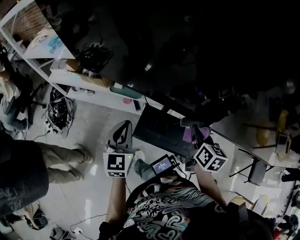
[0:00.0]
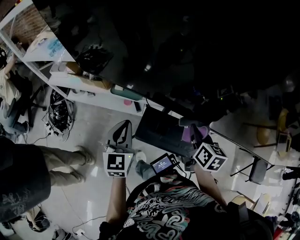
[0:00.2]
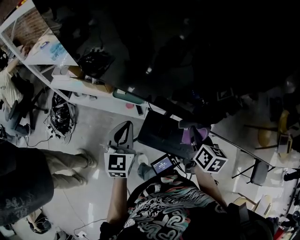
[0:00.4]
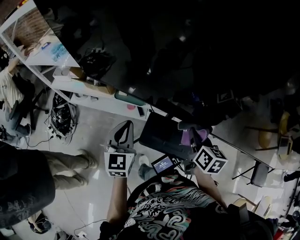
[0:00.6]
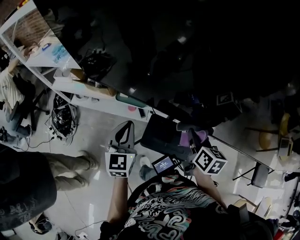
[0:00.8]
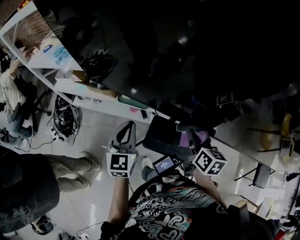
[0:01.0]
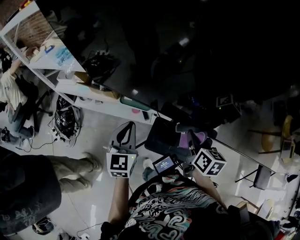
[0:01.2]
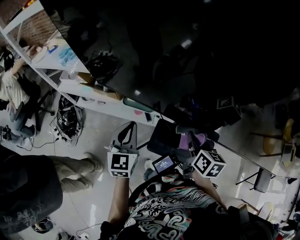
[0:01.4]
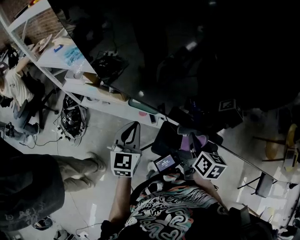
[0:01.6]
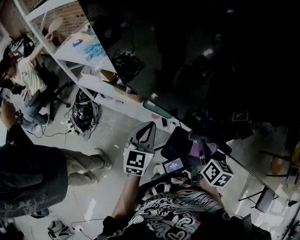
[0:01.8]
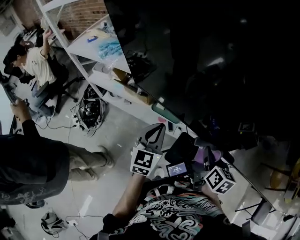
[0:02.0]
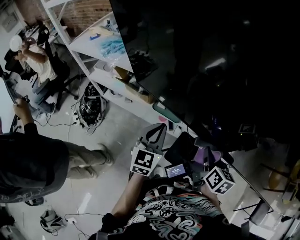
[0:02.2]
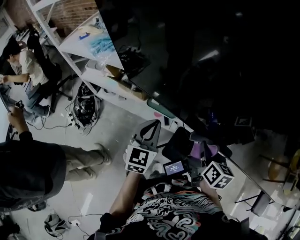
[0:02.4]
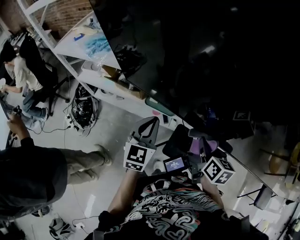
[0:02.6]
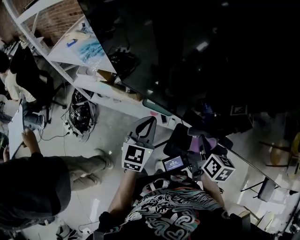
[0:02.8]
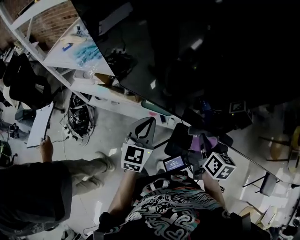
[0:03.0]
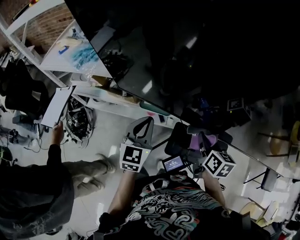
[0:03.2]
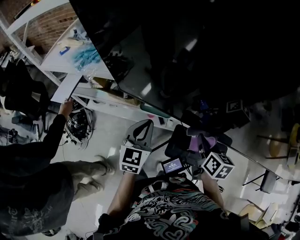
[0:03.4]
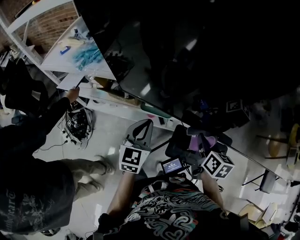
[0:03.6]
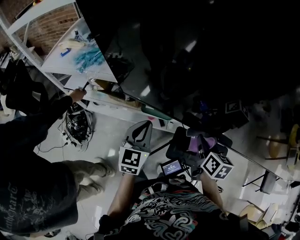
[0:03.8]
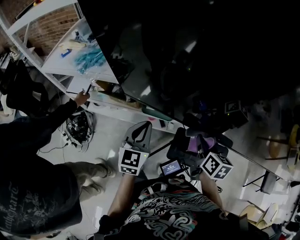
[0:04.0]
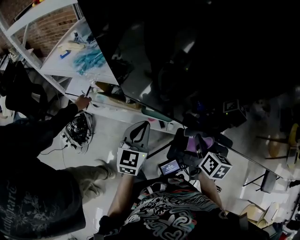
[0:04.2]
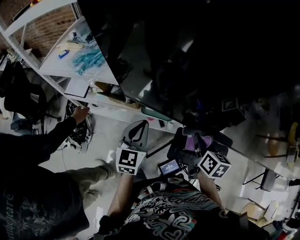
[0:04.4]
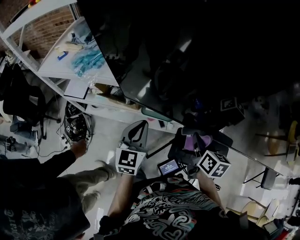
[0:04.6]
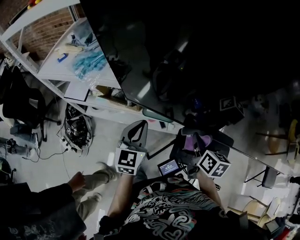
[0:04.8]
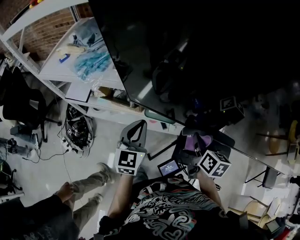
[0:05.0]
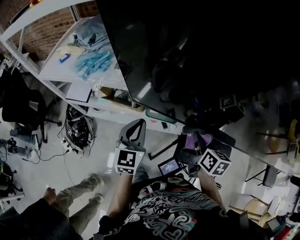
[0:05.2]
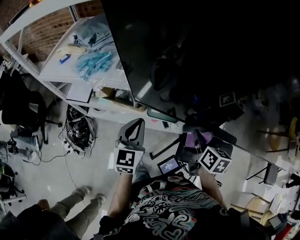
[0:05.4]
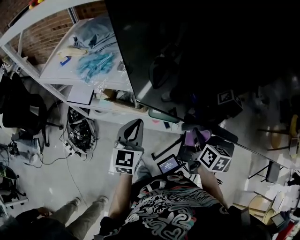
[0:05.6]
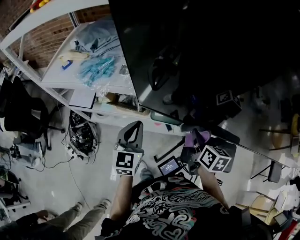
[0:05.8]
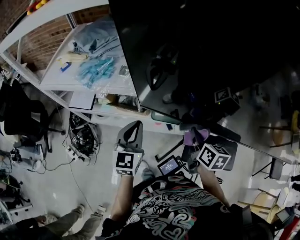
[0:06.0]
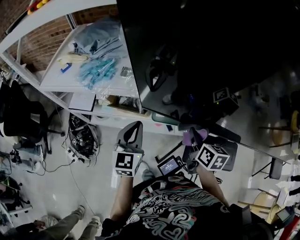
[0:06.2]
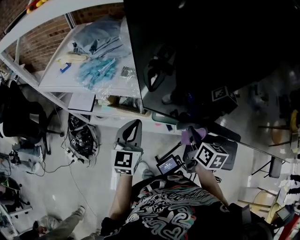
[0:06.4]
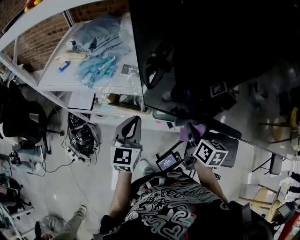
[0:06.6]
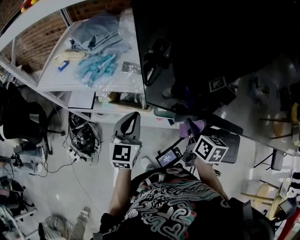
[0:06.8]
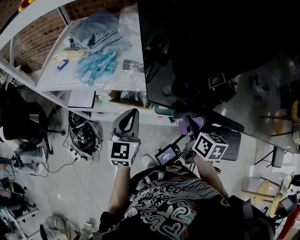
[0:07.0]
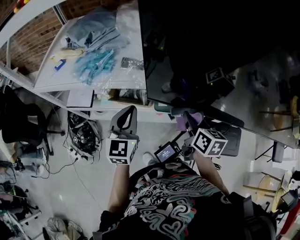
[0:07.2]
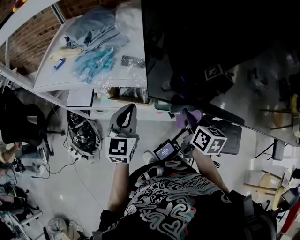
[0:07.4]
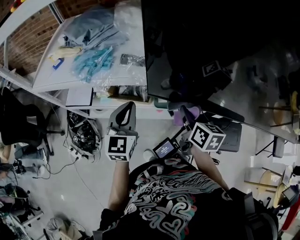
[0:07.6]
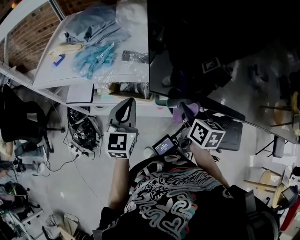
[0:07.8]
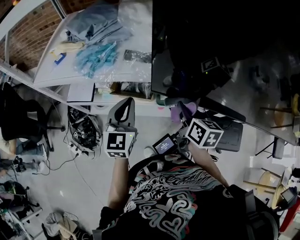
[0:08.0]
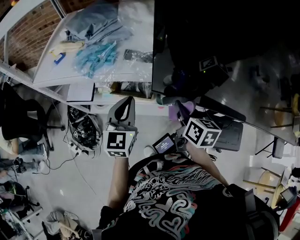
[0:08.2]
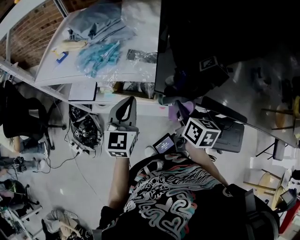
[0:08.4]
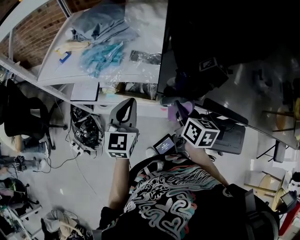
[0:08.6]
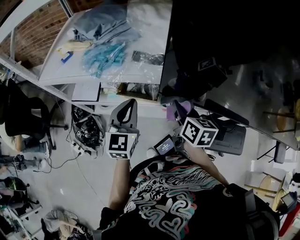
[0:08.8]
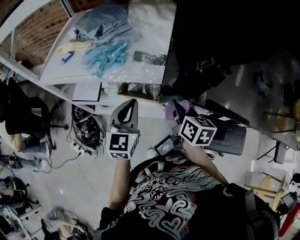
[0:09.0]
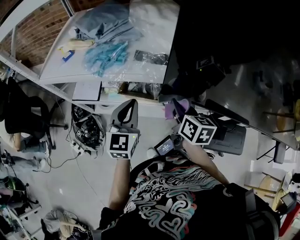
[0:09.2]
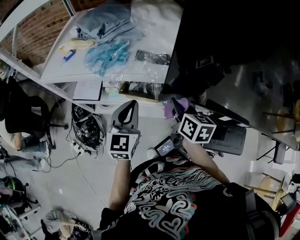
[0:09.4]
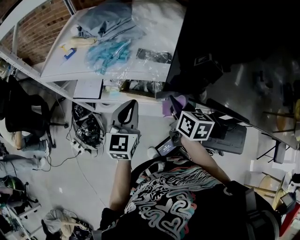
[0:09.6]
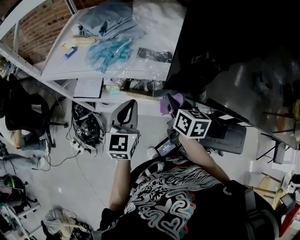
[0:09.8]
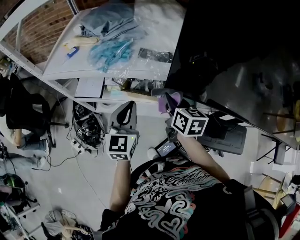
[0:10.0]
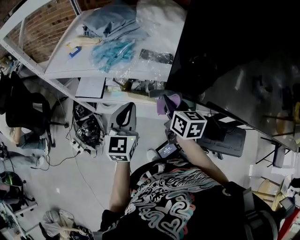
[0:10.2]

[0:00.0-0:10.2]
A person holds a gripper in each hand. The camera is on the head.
0:00.0 to 0:01.4: The right gripper heads to the left, covering roughly 10 cm. The left gripper is displaced to the left and forward by some 10 cm.
0:01.4 to 0:03.0: The left gripper changes place by about 5 cm. Meanwhile the right gripper moves to the left, roughly 5 cm.
0:03.0 to 0:04.4: Both grippers move to the left, about 5 cm.
0:04.4 to 0:05.8: Both grippers move to the left, roughly 10 cm.
0:05.8 to 0:07.2: The two grippers go about 10 cm to the left.
0:07.2 to 0:08.8: The right gripper travels to the left by some 10 cm.
0:08.8 to 0:10.2: The right gripper shifts approximately 5 cm to the left.

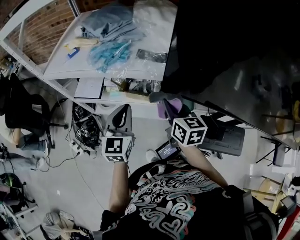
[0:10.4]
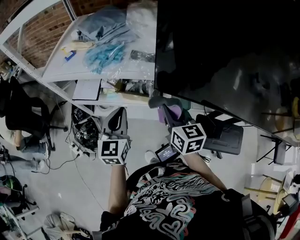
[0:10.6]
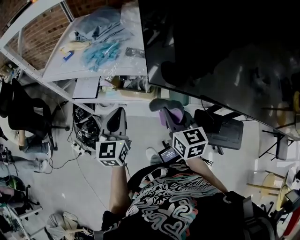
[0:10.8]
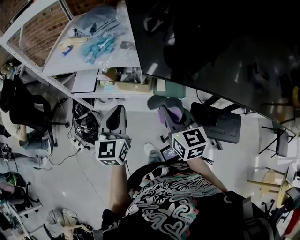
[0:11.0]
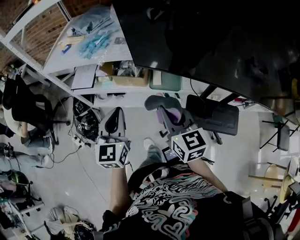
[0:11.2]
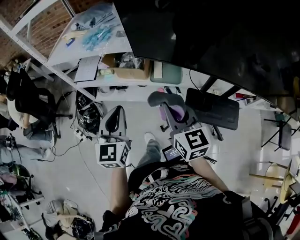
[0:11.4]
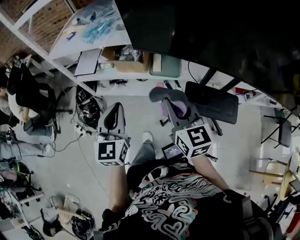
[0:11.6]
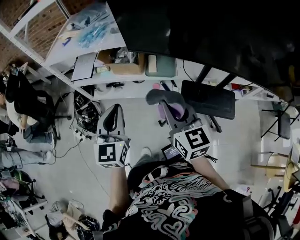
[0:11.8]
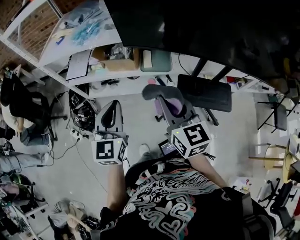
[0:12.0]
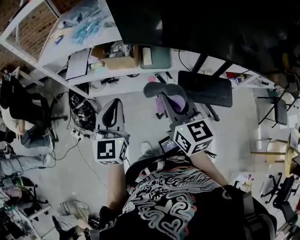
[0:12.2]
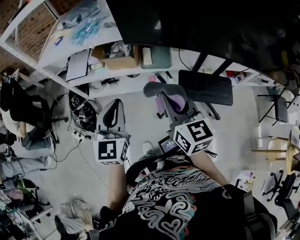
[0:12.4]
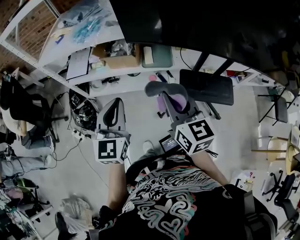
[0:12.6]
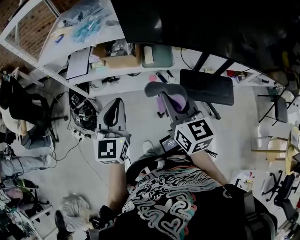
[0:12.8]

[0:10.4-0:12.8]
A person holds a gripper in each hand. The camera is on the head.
0:10.4 to 0:11.6: The grippers both shift backward by about 30 cm.
0:11.6 to 0:12.8: The right gripper shifts by roughly 5 cm.

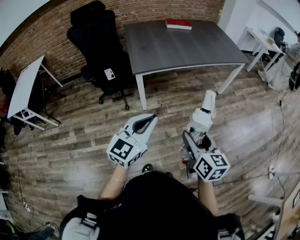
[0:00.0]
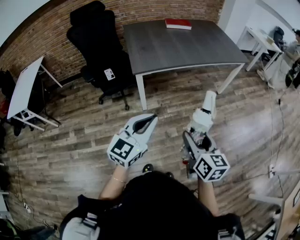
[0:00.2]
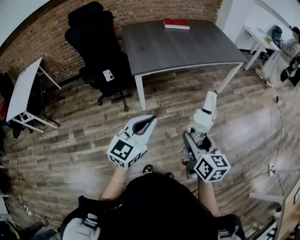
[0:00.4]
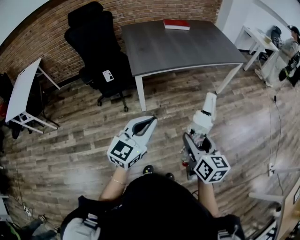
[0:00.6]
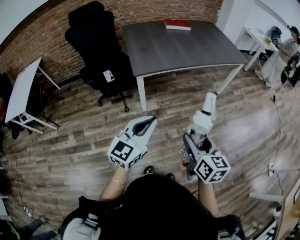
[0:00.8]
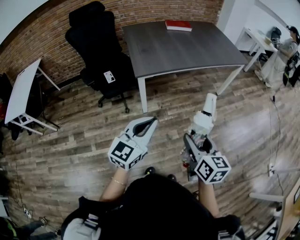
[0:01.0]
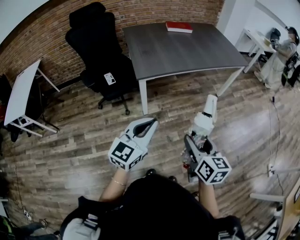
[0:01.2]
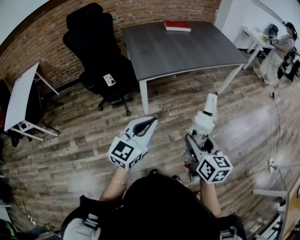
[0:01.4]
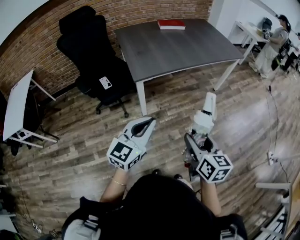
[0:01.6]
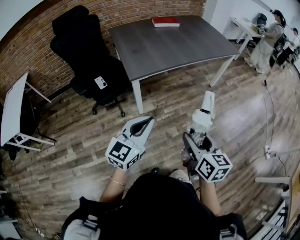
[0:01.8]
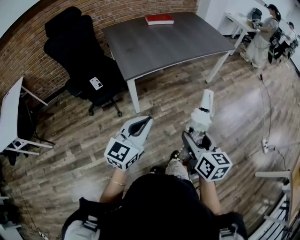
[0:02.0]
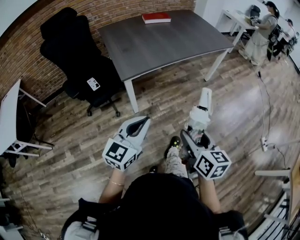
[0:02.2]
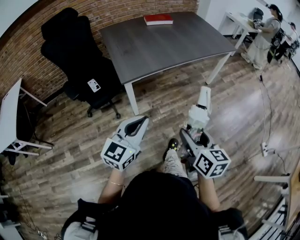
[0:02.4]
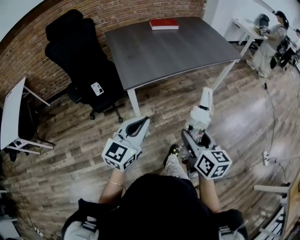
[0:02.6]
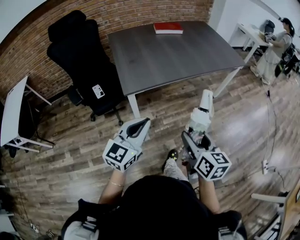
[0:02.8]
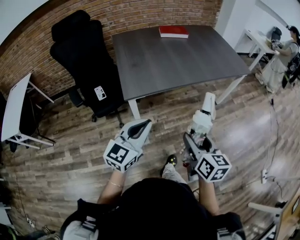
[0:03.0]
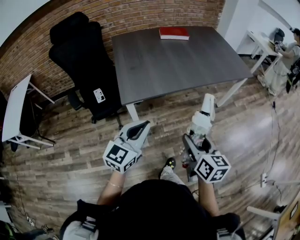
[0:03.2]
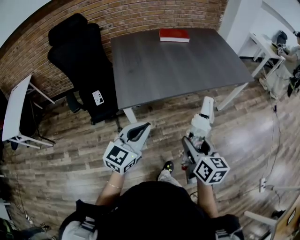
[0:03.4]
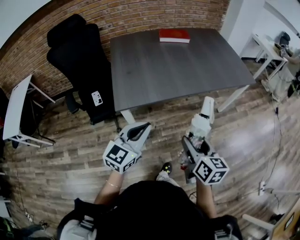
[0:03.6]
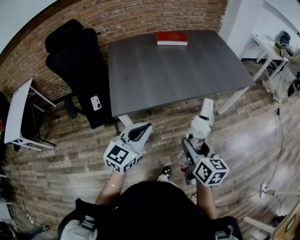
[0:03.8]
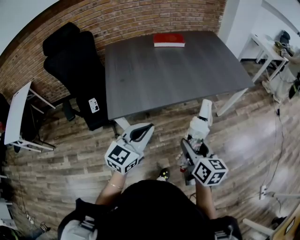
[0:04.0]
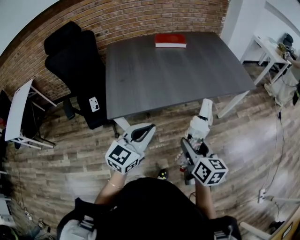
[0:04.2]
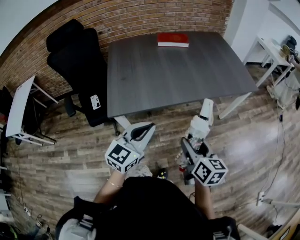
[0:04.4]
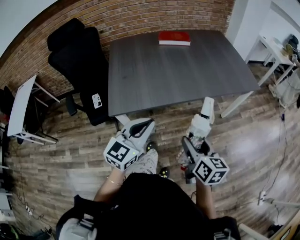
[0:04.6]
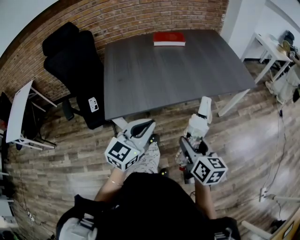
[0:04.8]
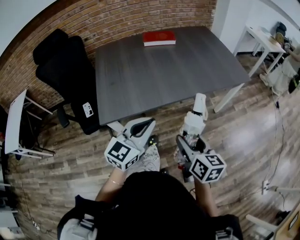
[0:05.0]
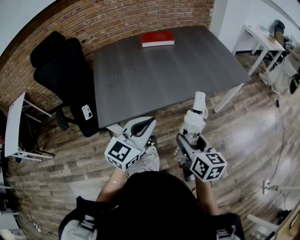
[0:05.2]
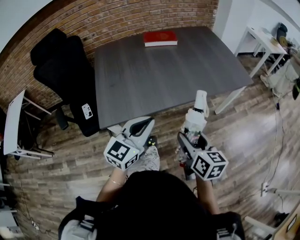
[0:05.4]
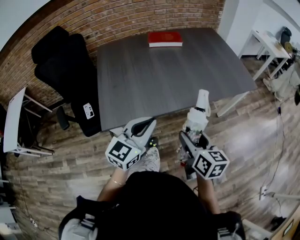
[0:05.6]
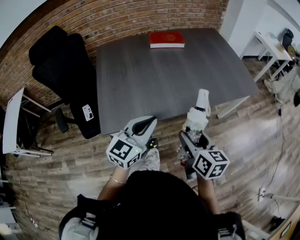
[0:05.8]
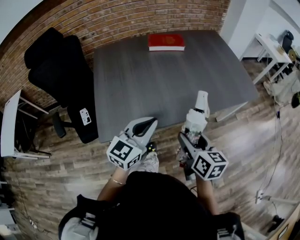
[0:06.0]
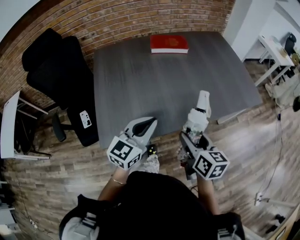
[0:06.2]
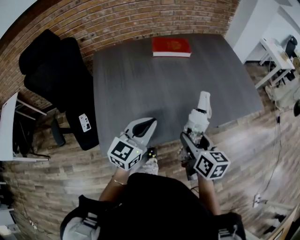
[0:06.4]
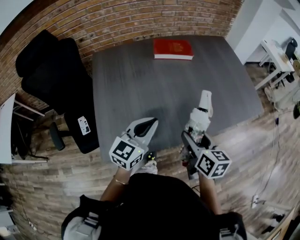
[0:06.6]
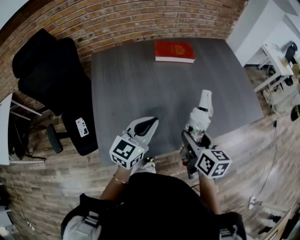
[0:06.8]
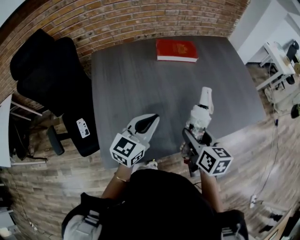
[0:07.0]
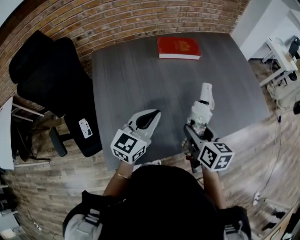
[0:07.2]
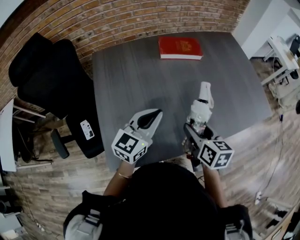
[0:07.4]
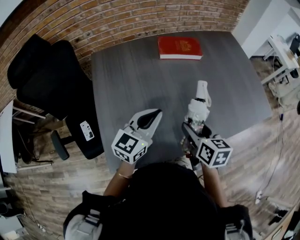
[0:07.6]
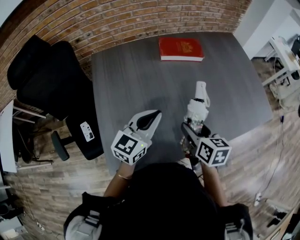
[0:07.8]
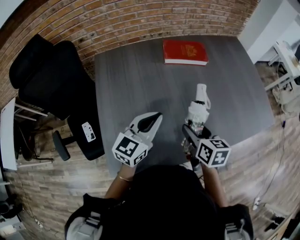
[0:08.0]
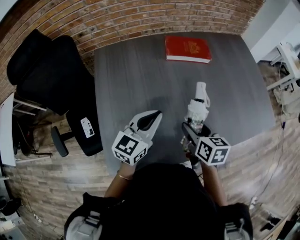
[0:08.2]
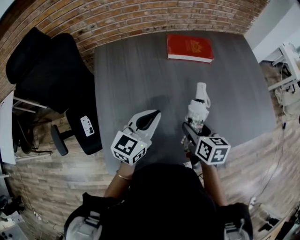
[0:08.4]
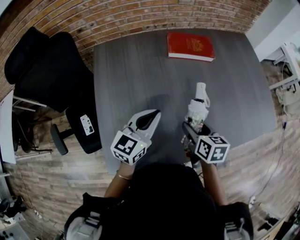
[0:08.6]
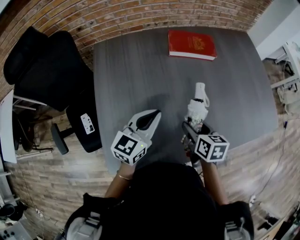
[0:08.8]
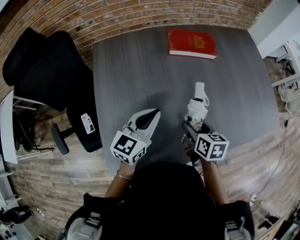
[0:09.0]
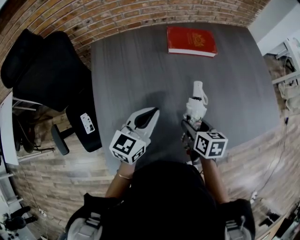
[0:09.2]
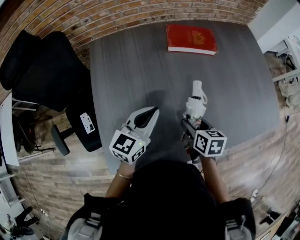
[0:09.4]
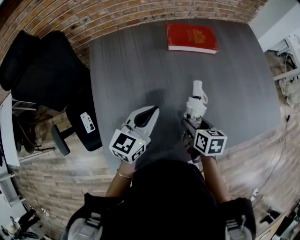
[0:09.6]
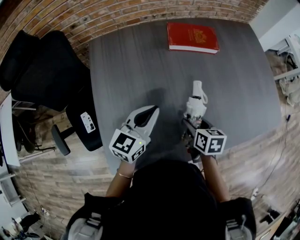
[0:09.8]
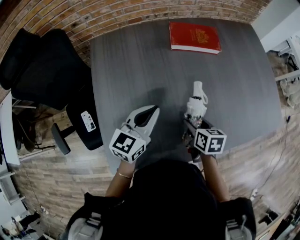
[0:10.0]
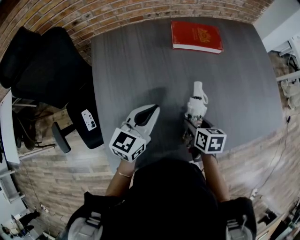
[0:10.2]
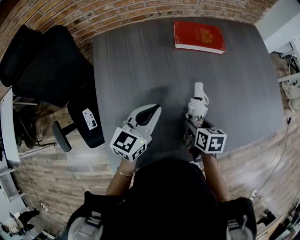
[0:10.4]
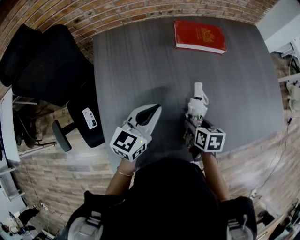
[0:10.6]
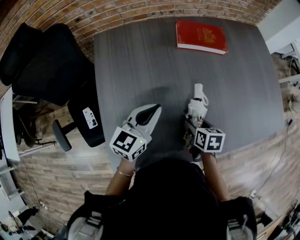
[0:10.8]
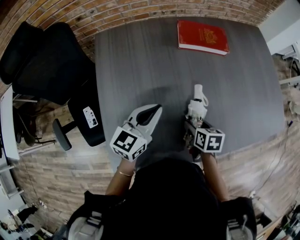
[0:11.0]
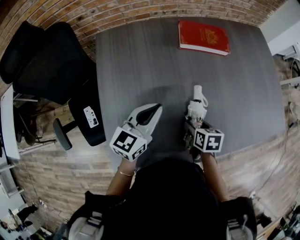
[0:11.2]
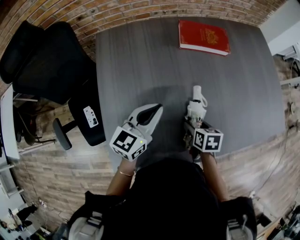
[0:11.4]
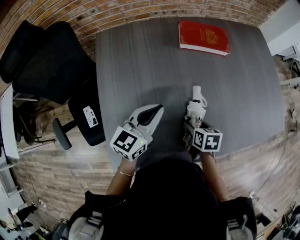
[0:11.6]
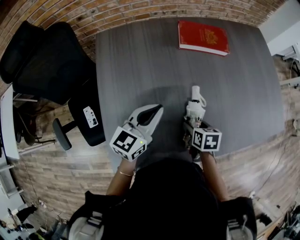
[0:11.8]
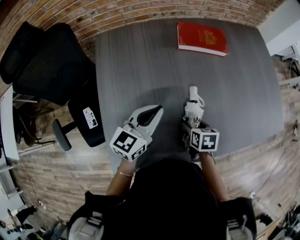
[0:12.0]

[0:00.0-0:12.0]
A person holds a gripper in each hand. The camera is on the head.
0:00.0 to 0:01.6: Both grippers move to the left, roughly 10 cm.
0:01.6 to 0:03.0: The two grippers go approximately 20 cm forward.
0:03.0 to 0:04.4: The grippers both shift forward and to the right by some 20 cm.
0:04.4 to 0:06.0: Both grippers move forward, about 20 cm.
0:06.0 to 0:07.6: Both grippers move forward and to the left, some 25 cm.
0:07.6 to 0:09.0: The right gripper moves downward and forward, some 10 cm. The left gripper travels forward by approximately 5 cm.
0:09.0 to 0:10.4: The right gripper is displaced downward by approximately 5 cm.
0:10.4 to 0:12.0: There are only small adjustments of the grippers.
